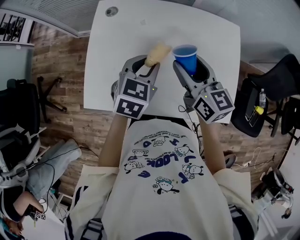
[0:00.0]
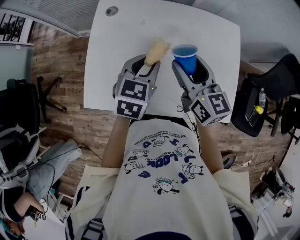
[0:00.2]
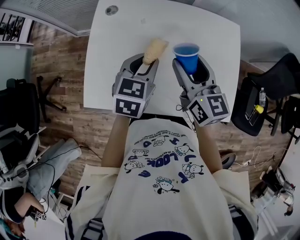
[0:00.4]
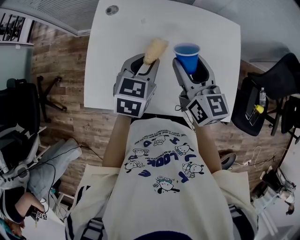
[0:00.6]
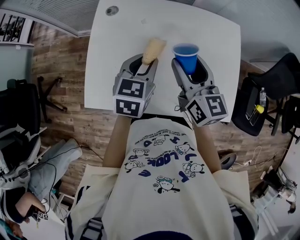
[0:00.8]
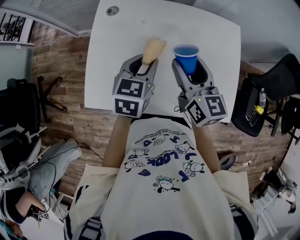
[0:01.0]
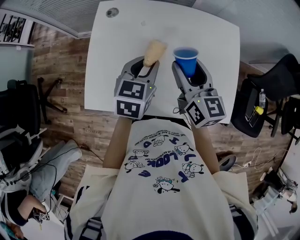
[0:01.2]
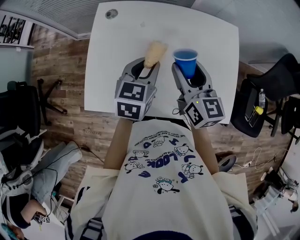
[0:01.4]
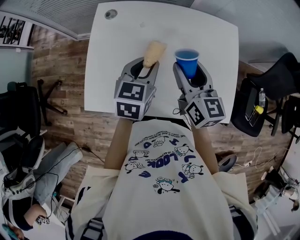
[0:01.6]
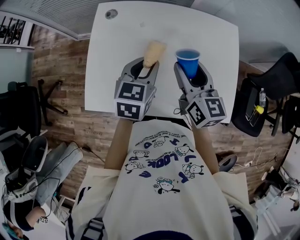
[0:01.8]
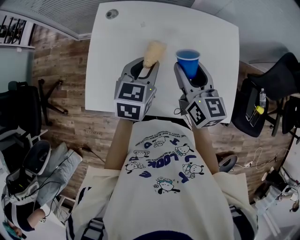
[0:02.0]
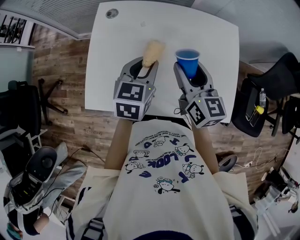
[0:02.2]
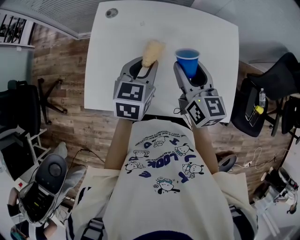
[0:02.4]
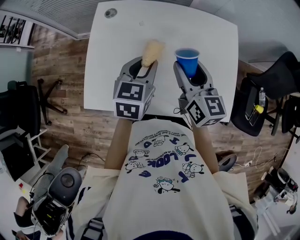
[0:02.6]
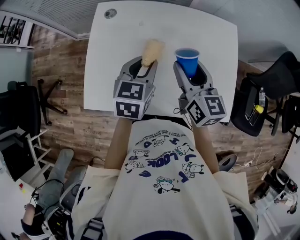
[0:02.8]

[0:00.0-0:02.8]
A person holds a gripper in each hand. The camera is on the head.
0:00.0 to 0:01.4: The grippers make only small movements.
0:01.4 to 0:02.8: Neither gripper changes place.

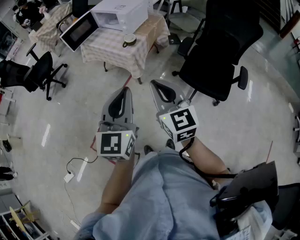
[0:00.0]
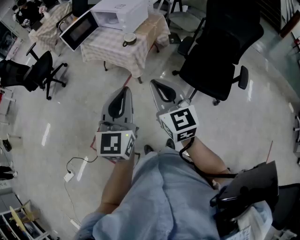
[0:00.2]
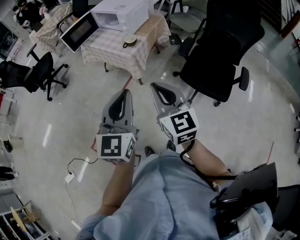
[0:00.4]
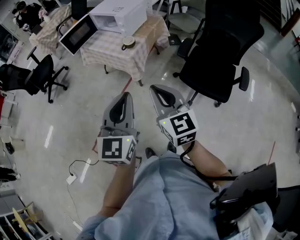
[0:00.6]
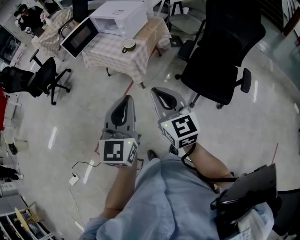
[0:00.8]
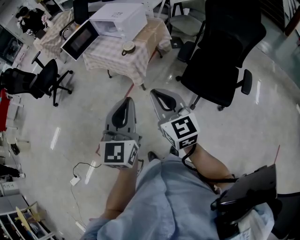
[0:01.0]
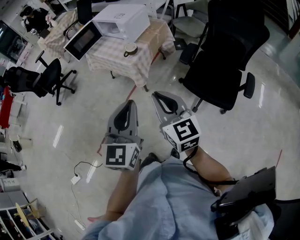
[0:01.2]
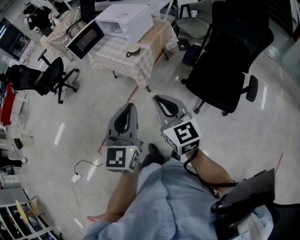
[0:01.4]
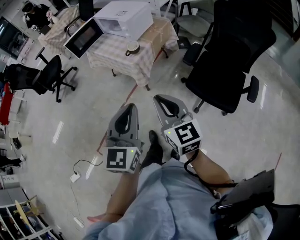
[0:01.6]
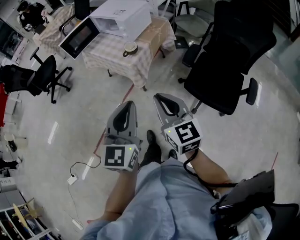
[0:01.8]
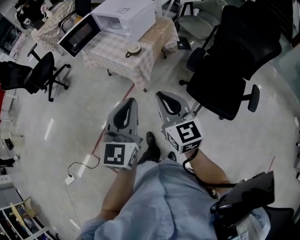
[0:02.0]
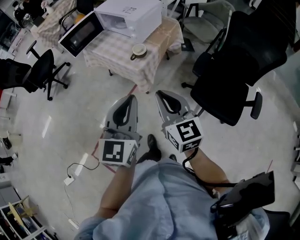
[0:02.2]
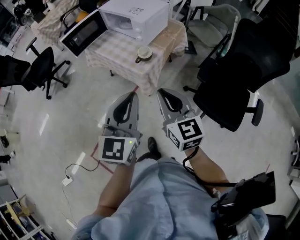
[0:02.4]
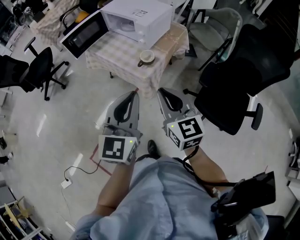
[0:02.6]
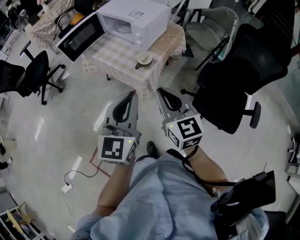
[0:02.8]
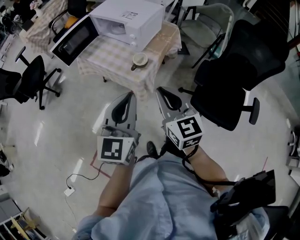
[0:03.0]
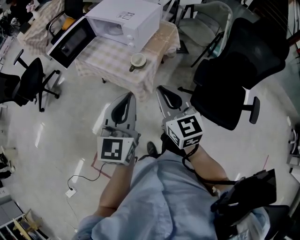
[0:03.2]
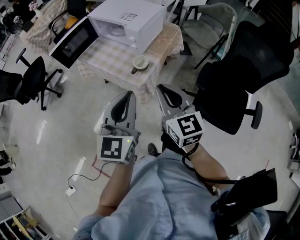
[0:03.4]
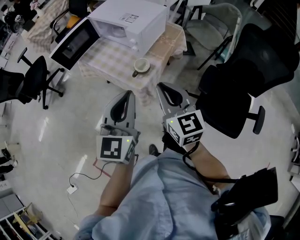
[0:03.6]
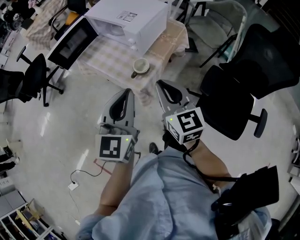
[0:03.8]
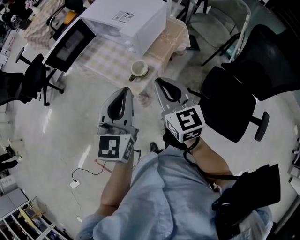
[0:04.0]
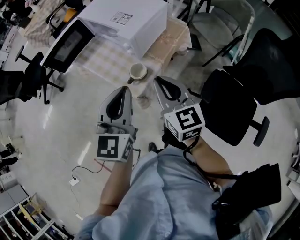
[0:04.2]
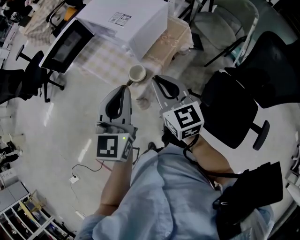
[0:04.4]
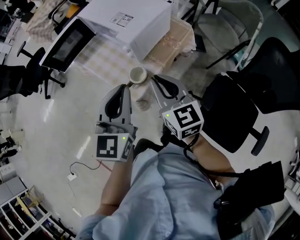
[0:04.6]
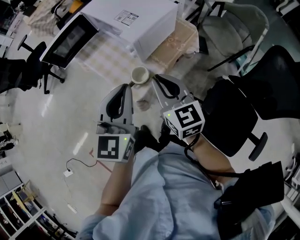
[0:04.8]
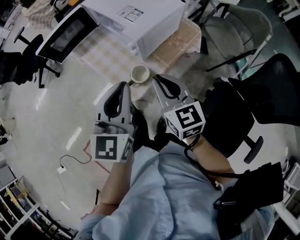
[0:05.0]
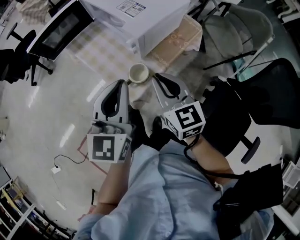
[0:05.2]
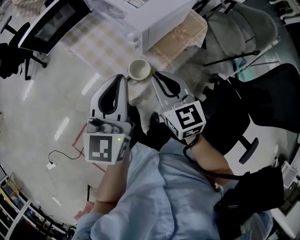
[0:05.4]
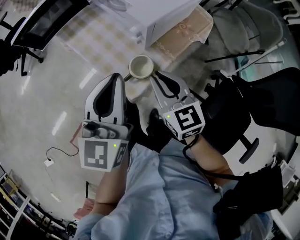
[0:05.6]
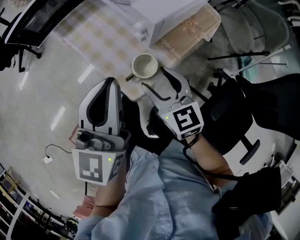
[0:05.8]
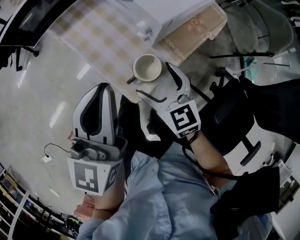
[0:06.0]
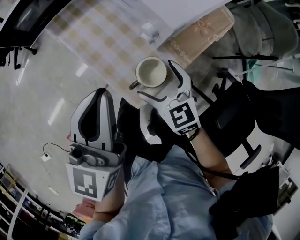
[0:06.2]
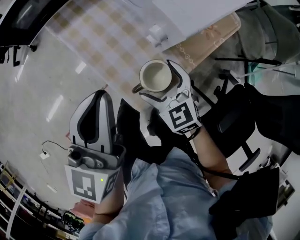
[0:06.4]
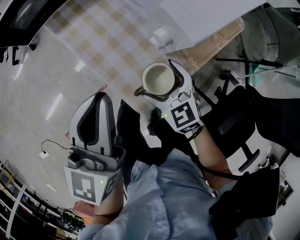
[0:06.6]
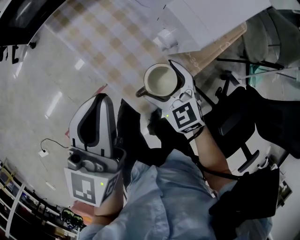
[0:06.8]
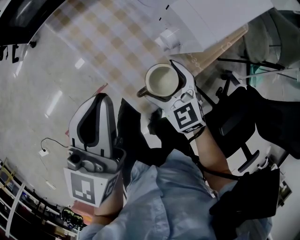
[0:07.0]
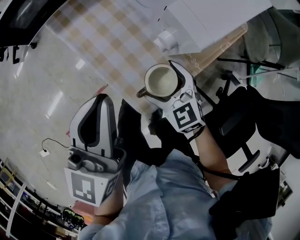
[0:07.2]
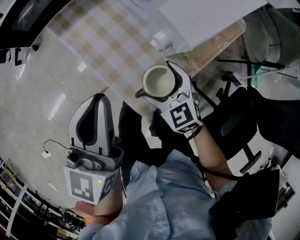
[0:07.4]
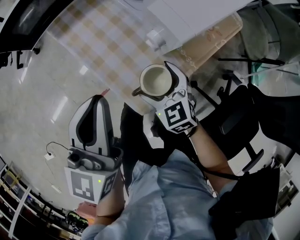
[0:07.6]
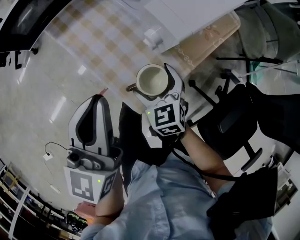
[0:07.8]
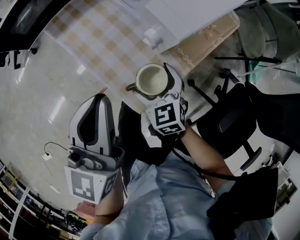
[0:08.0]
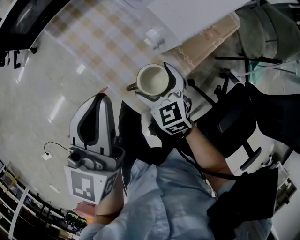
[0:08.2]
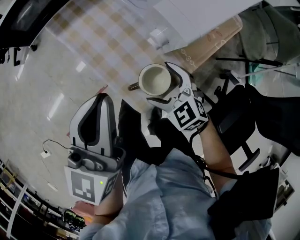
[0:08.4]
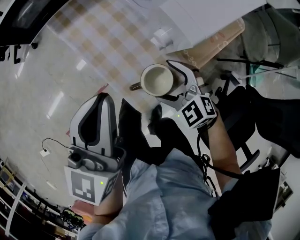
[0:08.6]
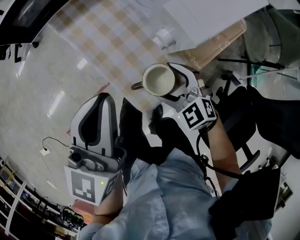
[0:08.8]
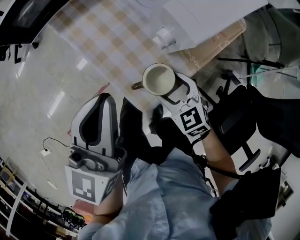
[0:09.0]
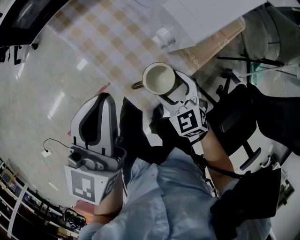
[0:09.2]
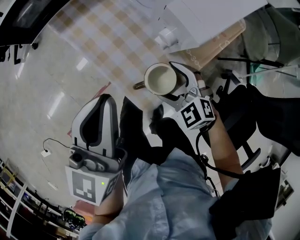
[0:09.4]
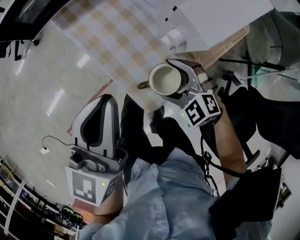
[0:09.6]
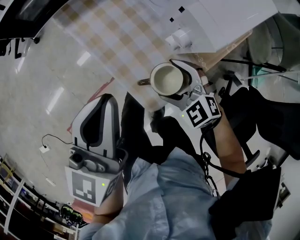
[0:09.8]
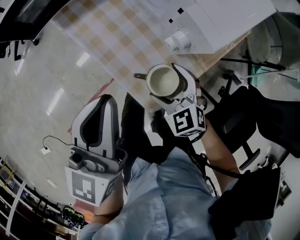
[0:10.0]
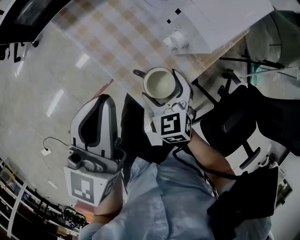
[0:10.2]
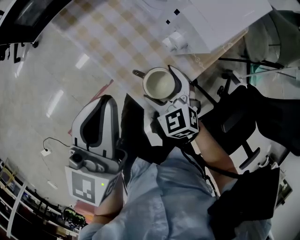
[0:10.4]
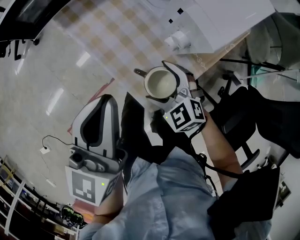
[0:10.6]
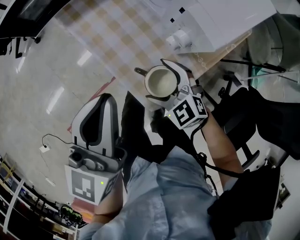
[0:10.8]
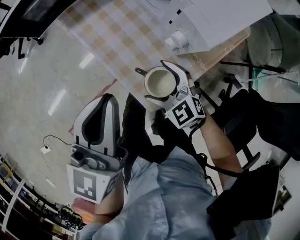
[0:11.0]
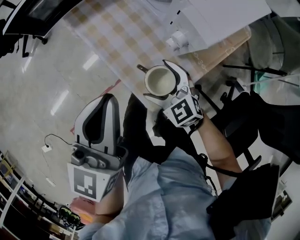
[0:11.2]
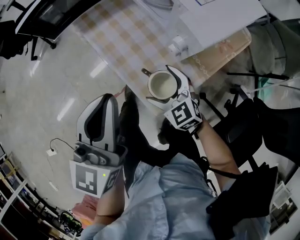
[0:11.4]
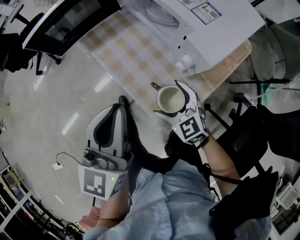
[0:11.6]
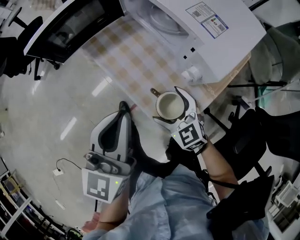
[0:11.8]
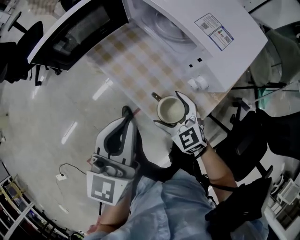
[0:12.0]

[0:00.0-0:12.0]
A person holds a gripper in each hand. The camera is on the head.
0:00.0 to 0:01.6: The two grippers go roughly 5 cm to the right.
0:01.6 to 0:03.0: The two grippers go some 25 cm forward.
0:03.0 to 0:04.4: Both grippers move forward, roughly 20 cm.
0:04.4 to 0:06.0: The left gripper moves forward, downward and to the left, about 15 cm; the right gripper moves downward and forward, roughly 25 cm, swivels roughly 20 degrees, and opens.
0:06.0 to 0:07.6: The right gripper travels downward by some 10 cm. The left gripper moves about 5 cm.
0:09.0 to 0:10.4: The right gripper is displaced to the left by about 5 cm.
0:10.4 to 0:12.0: The left gripper ends up some 5 cm from where it was. The right gripper goes roughly 10 cm forward and to the left.

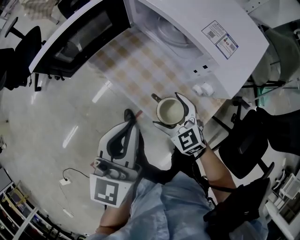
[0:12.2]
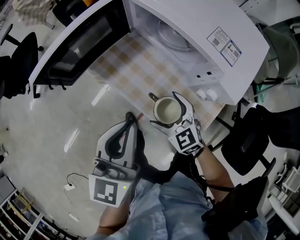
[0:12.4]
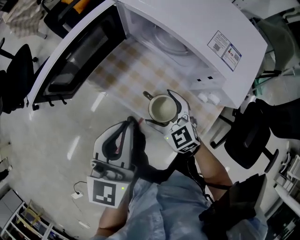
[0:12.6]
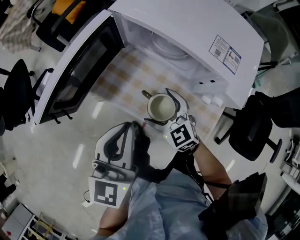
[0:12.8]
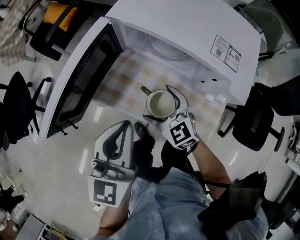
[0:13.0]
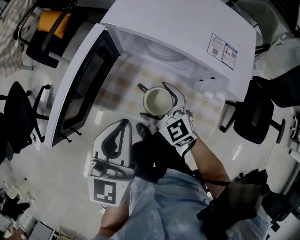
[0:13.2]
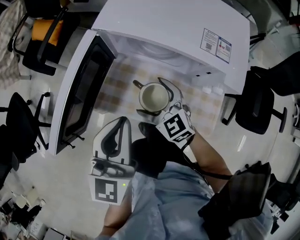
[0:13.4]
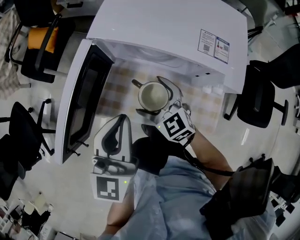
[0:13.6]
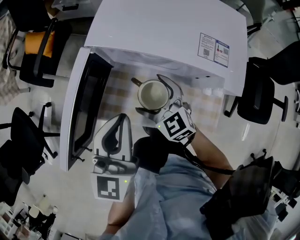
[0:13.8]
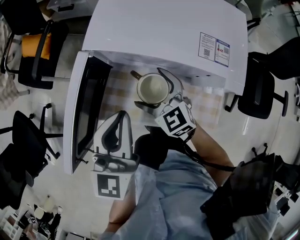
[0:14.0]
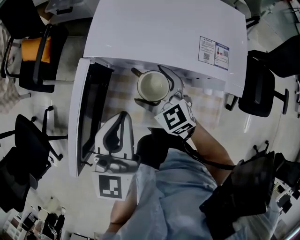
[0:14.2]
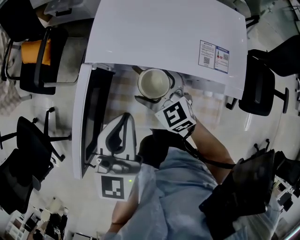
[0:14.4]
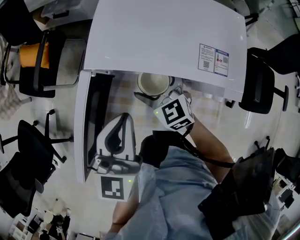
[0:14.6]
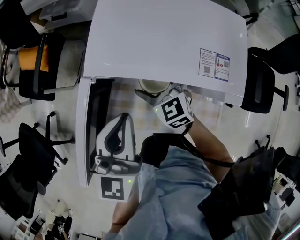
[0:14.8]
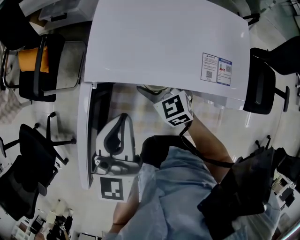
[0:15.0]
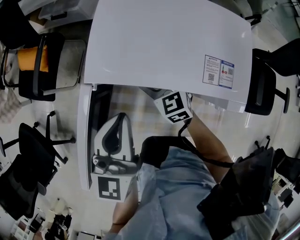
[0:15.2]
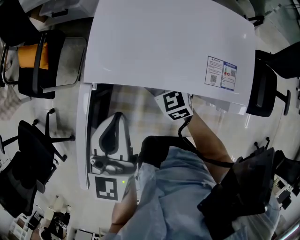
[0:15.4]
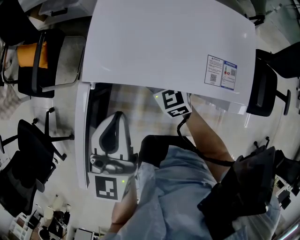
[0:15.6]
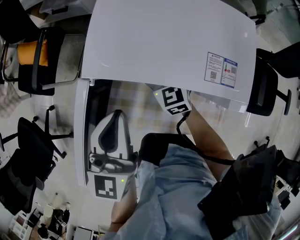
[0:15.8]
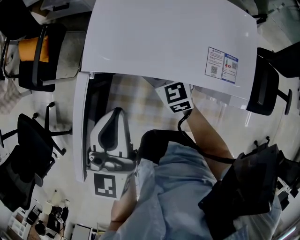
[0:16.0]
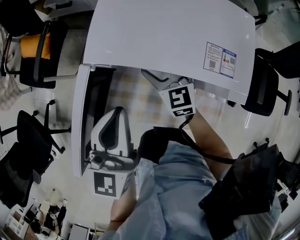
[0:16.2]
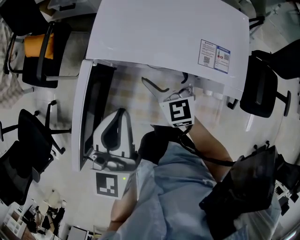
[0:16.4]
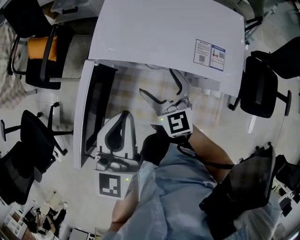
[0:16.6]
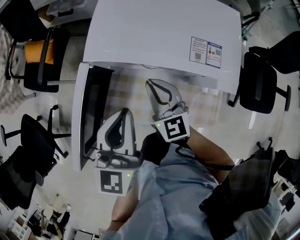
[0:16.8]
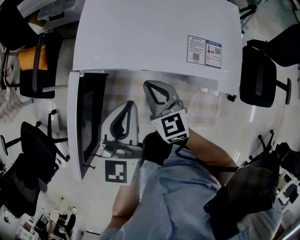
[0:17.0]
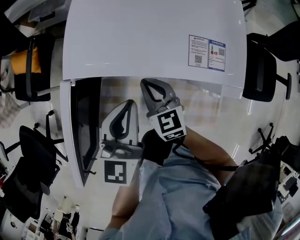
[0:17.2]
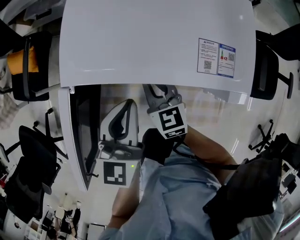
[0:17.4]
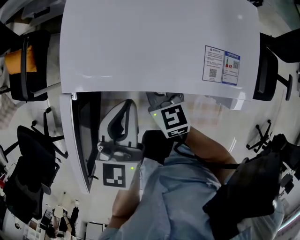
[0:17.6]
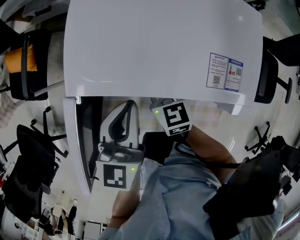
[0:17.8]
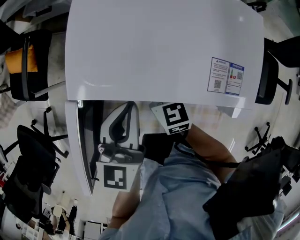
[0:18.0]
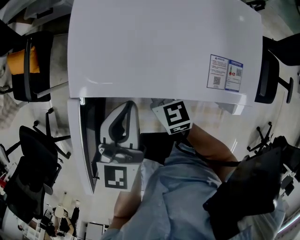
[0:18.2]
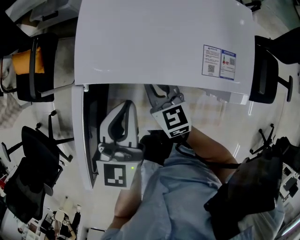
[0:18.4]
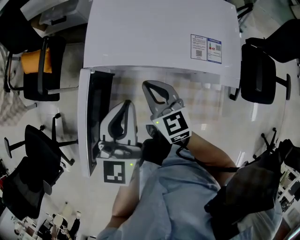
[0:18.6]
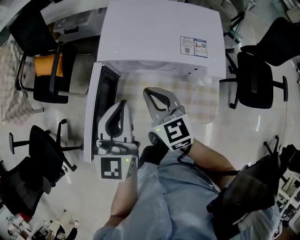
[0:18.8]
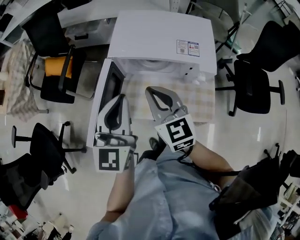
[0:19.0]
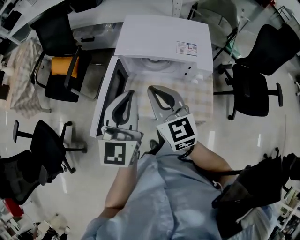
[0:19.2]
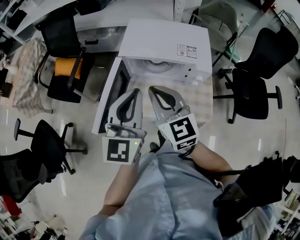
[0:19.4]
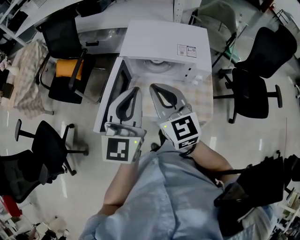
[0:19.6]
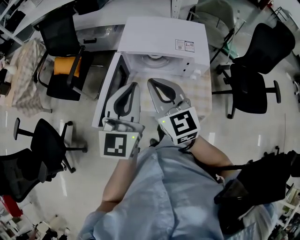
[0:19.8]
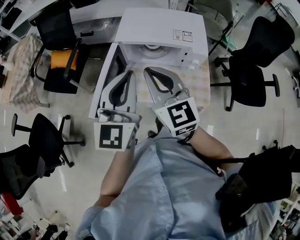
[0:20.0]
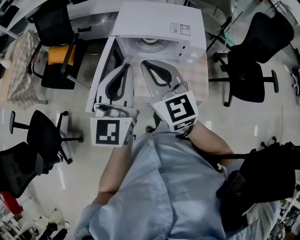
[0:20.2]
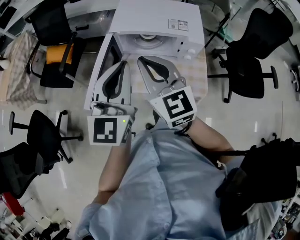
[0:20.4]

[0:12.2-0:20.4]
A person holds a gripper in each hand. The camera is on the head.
0:12.2 to 0:13.8: The right gripper moves about 20 cm, and swivels roughly 30 degrees. The left gripper ends up about 20 cm from where it was, and swivels approximately 30 degrees.
0:13.8 to 0:15.4: The right gripper goes approximately 15 cm forward, while the left gripper travels forward by about 10 cm.
0:15.4 to 0:17.2: The right gripper shifts about 10 cm backward, and closes its fingers. Meanwhile the left gripper heads to the right, covering about 5 cm.
0:17.2 to 0:18.8: The left gripper travels upward, backward and to the left by roughly 15 cm. Meanwhile the right gripper shifts about 15 cm upward and backward.
0:18.8 to 0:20.4: The grippers both shift upward and backward by roughly 20 cm.
